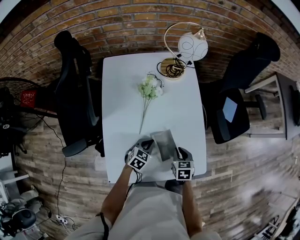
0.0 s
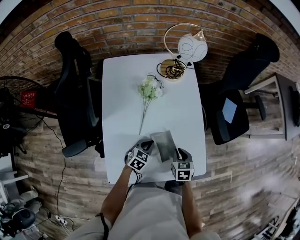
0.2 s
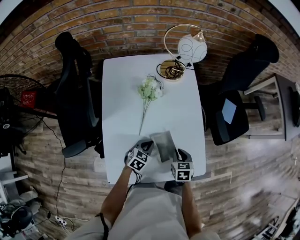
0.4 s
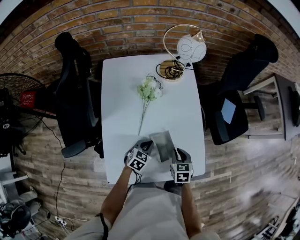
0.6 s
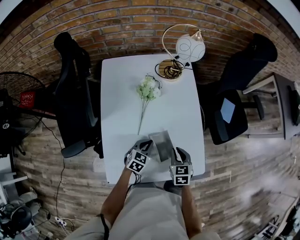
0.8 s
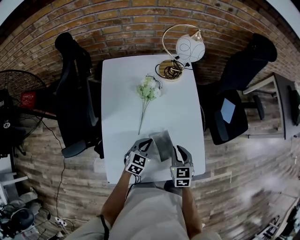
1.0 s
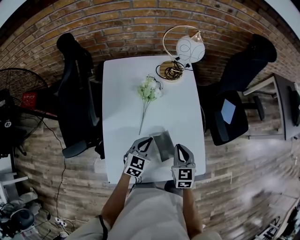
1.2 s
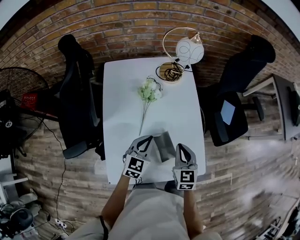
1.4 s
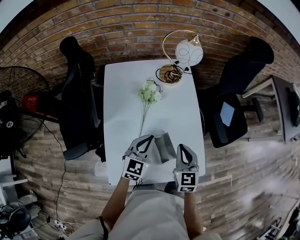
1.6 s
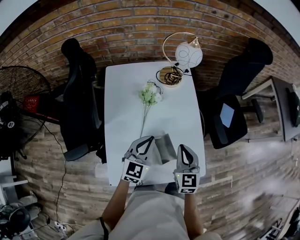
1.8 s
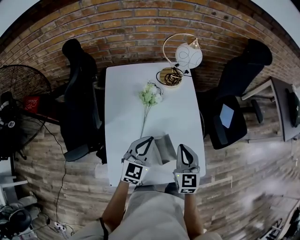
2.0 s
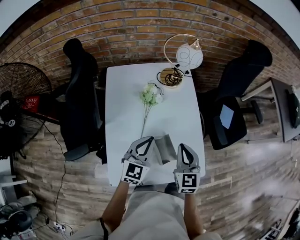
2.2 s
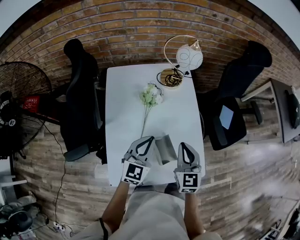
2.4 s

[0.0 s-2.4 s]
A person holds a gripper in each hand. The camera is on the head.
0.0 to 1.2 s: Both grippers travel together upward, approximately 10 cm. The right gripper rotates about 20 degrees.
1.2 to 2.4 s: Both grippers move upward, roughly 10 cm.

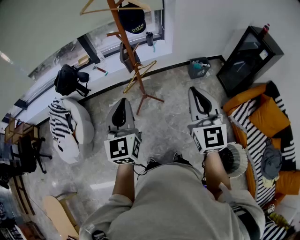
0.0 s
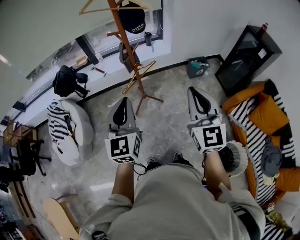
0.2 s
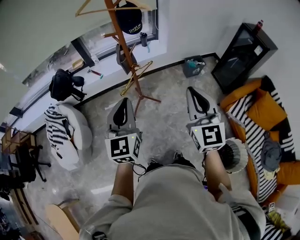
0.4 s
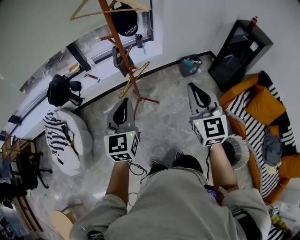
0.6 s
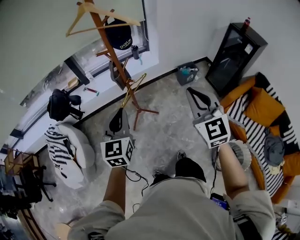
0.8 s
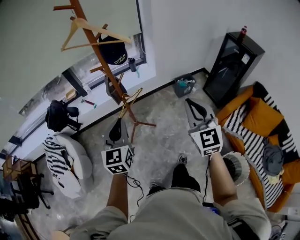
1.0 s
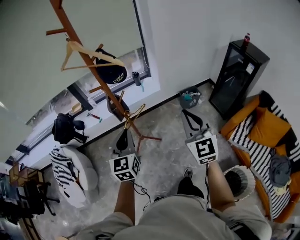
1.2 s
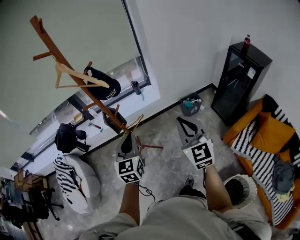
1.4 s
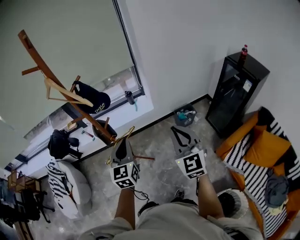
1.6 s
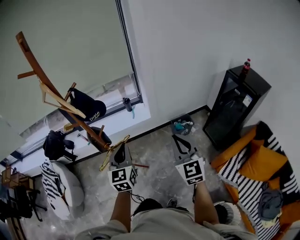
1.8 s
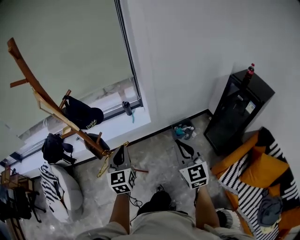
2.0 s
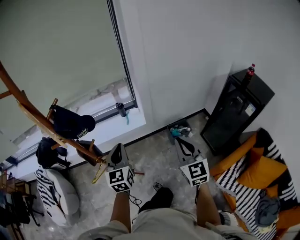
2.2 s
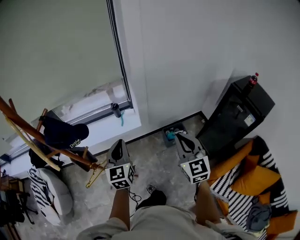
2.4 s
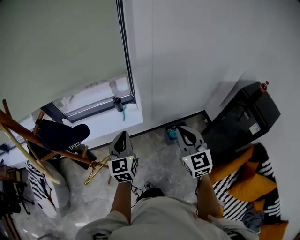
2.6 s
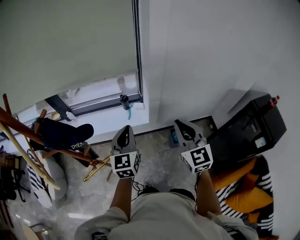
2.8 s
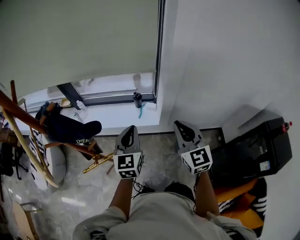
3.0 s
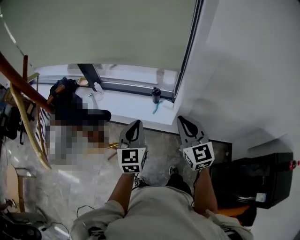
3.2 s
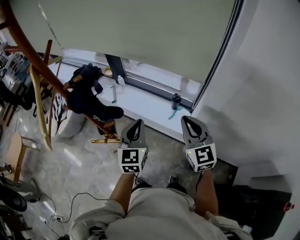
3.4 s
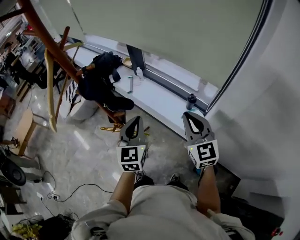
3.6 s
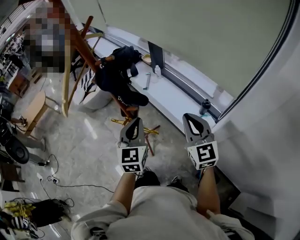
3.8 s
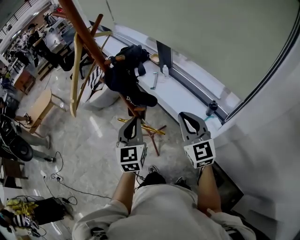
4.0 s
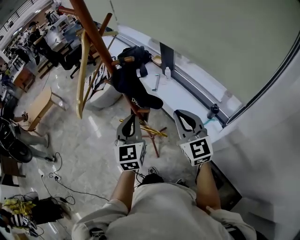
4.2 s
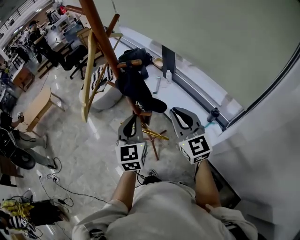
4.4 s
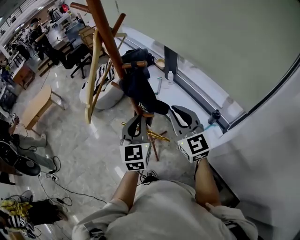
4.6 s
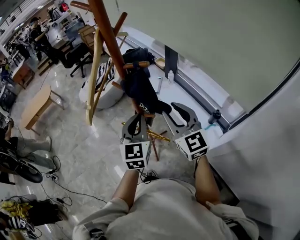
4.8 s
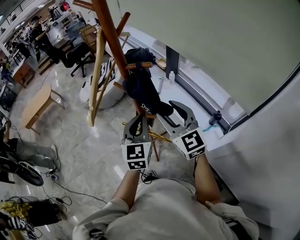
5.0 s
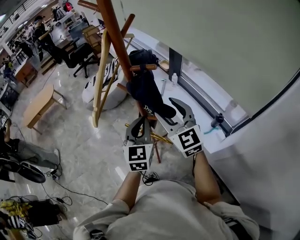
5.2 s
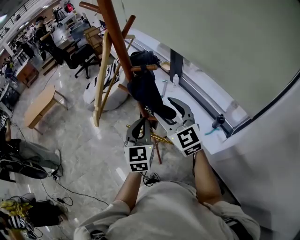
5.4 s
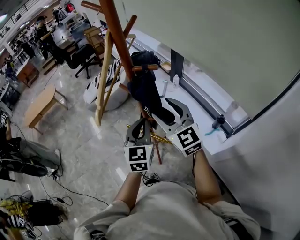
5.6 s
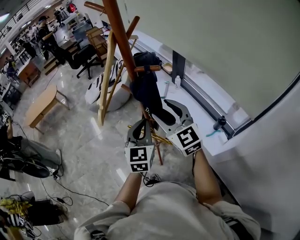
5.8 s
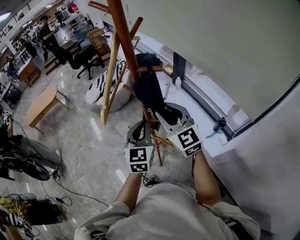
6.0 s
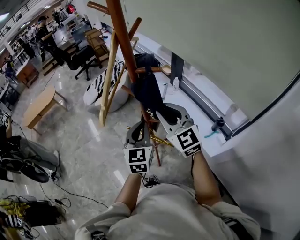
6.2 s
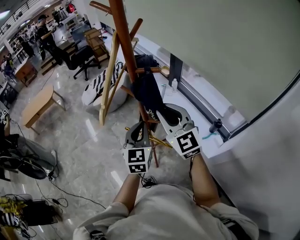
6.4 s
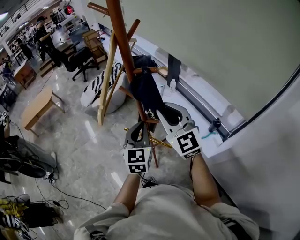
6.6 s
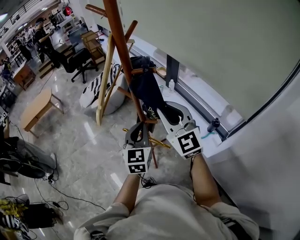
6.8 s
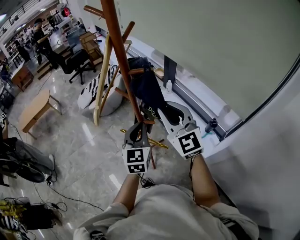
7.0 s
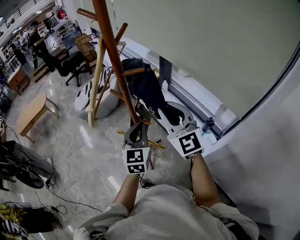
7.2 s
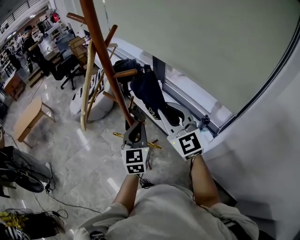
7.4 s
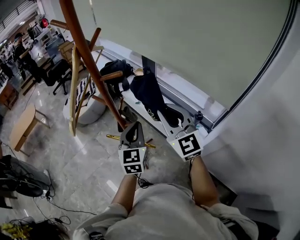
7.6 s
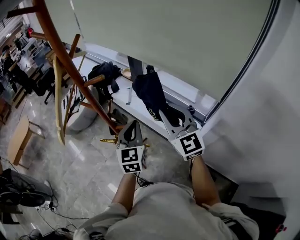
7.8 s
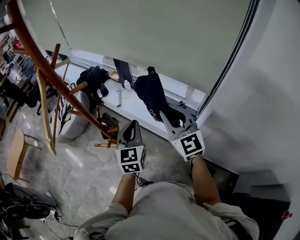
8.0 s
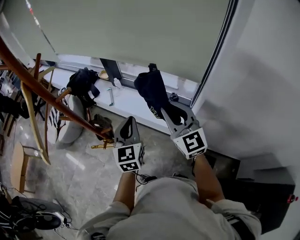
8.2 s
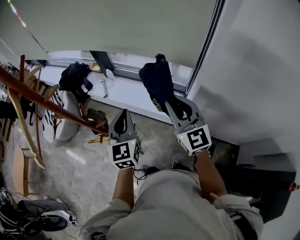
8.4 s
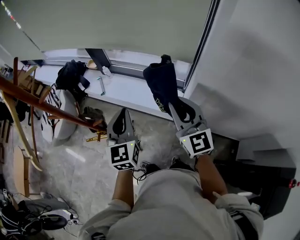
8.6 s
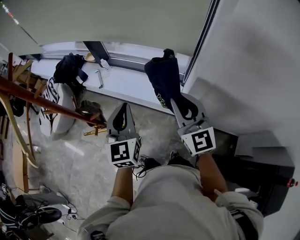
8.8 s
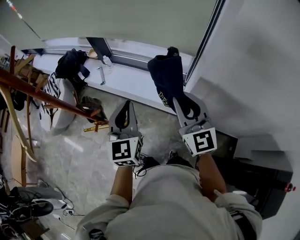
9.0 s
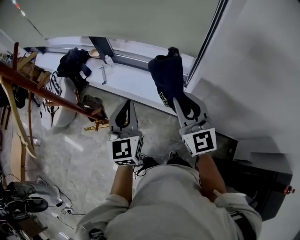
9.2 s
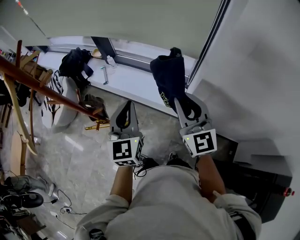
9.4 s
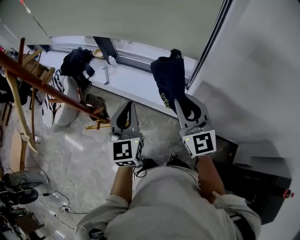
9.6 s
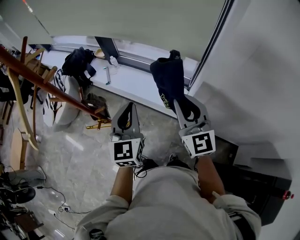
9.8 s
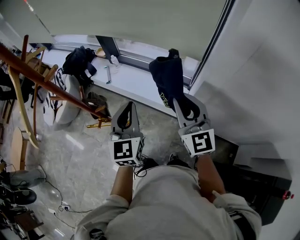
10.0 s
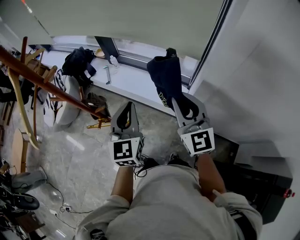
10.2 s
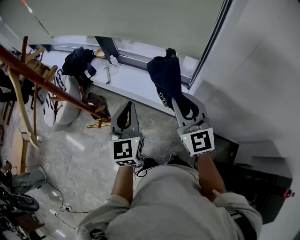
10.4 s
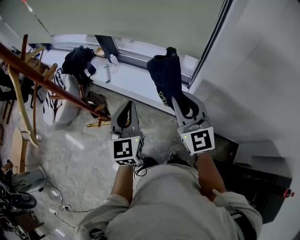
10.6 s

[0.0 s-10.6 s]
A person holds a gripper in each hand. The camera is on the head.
0.0 to 1.6 s: Both grippers move forward and to the right, roughly 30 cm.
1.6 to 3.0 s: Both grippers travel together forward, about 40 cm. The right gripper turns by some 20 degrees.
3.0 to 4.6 s: The right gripper shifts by roughly 30 cm, and rotates some 60 degrees, while the left gripper moves some 20 cm, and swivels roughly 60 degrees.
4.6 to 6.0 s: The right gripper shifts about 10 cm to the left and forward, and opens up.
6.0 to 7.6 s: The two grippers go approximately 10 cm to the right.
7.6 to 9.0 s: The right gripper moves roughly 25 cm, and rotates about 30 degrees; the left gripper shifts by some 15 cm, and changes its angle by some 20 degrees.
9.0 to 10.6 s: The grippers move only a little.

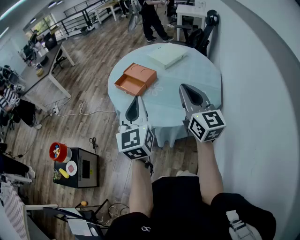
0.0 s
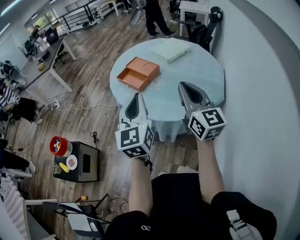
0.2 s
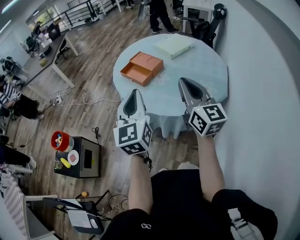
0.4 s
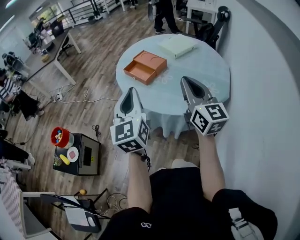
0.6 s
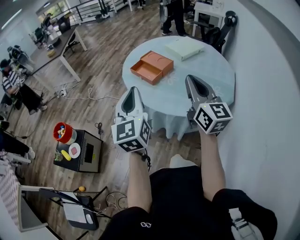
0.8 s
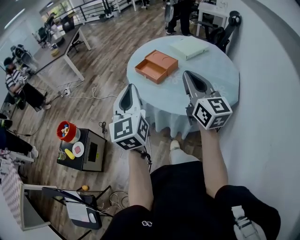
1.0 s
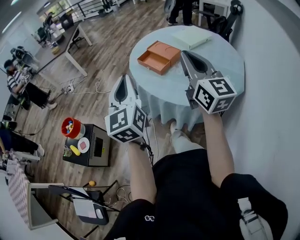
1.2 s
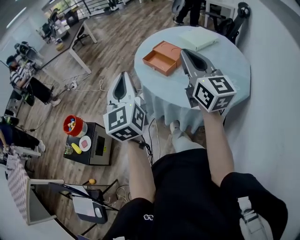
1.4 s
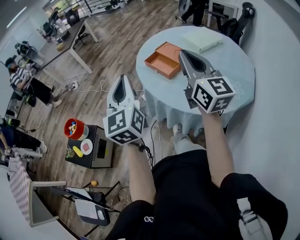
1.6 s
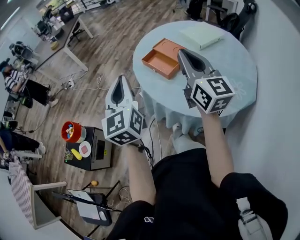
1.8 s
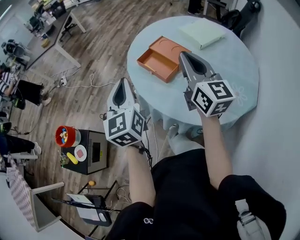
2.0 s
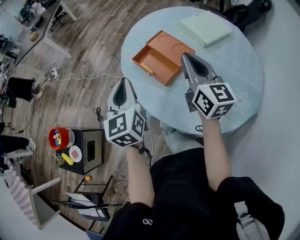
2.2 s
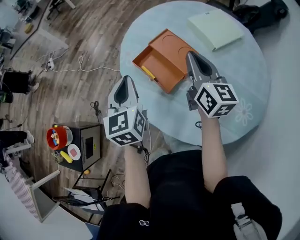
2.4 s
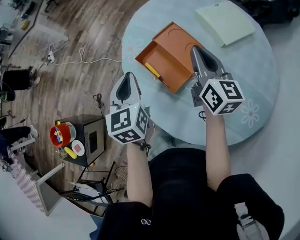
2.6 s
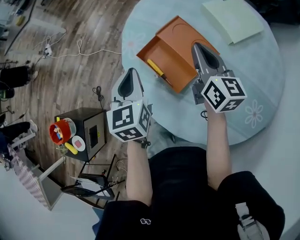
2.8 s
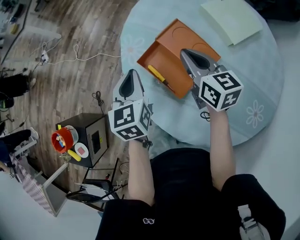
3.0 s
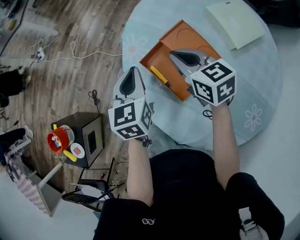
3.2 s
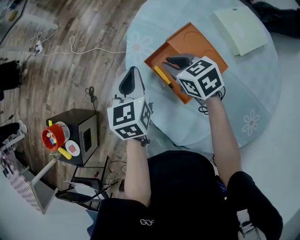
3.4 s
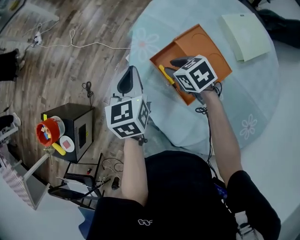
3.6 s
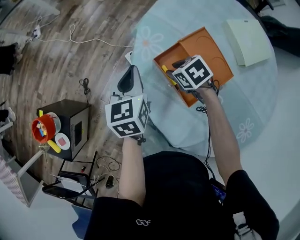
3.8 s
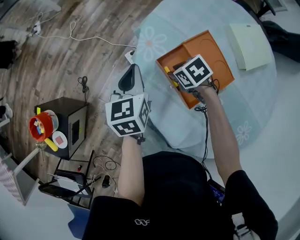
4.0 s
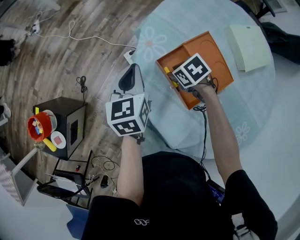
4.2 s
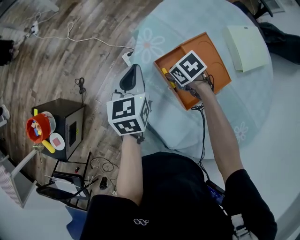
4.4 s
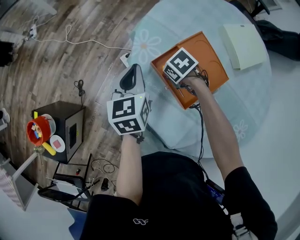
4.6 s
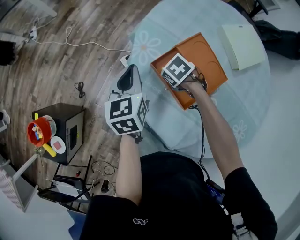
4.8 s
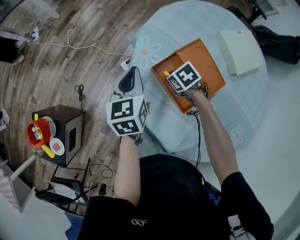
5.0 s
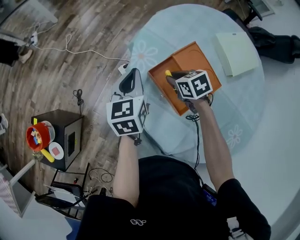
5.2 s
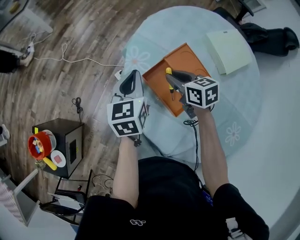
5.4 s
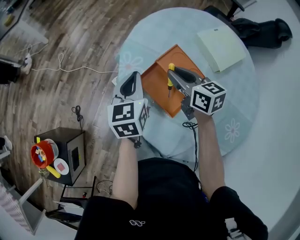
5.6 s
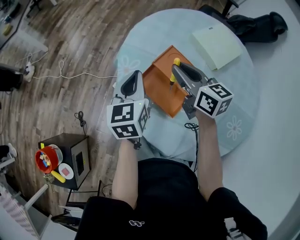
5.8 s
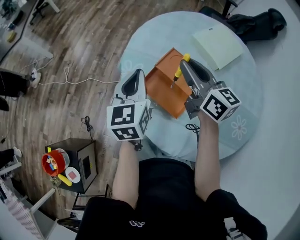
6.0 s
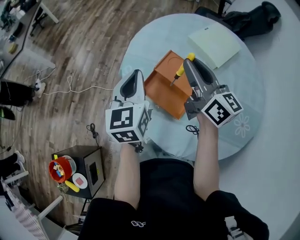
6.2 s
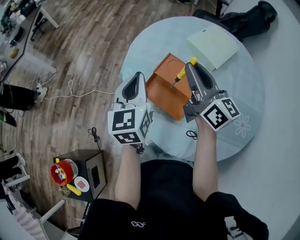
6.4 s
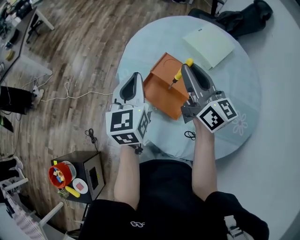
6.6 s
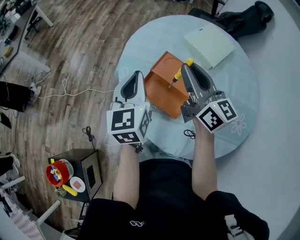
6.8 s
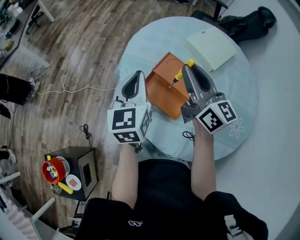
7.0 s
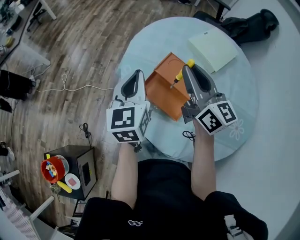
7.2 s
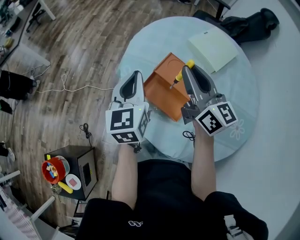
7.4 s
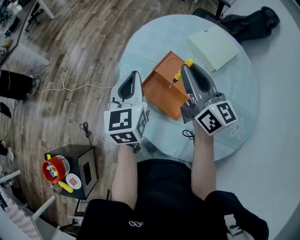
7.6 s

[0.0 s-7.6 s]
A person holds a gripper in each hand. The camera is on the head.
0.0 to 1.6 s: The left gripper moves to the left, some 20 cm. Meanwhile the right gripper goes some 20 cm to the left and forward.
1.6 to 3.0 s: The two grippers travel together, forward, some 40 cm. Both grippers travel together downward, some 30 cm. The right gripper angles its fingers downward, by roughly 30 degrees, while the left gripper tips its fingers downward by roughly 30 degrees.
3.0 to 4.6 s: The right gripper travels downward by about 20 cm, tips its fingers downward by about 50 degrees, and opens up; the left gripper ends up about 10 cm from where it was.
4.6 to 6.0 s: The right gripper shifts some 30 cm upward, and tips its fingers upward by roughly 70 degrees. The left gripper moves upward, approximately 10 cm, and swivels approximately 20 degrees.
6.0 to 7.6 s: There are only small adjustments of the grippers.

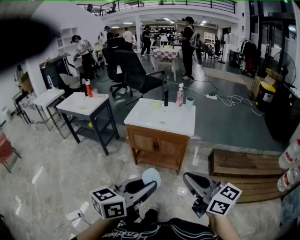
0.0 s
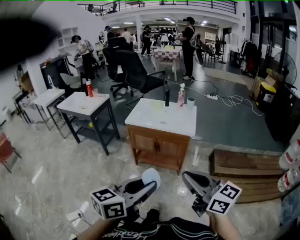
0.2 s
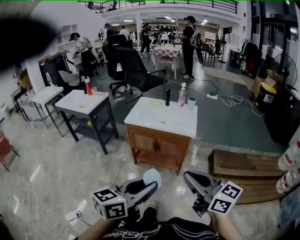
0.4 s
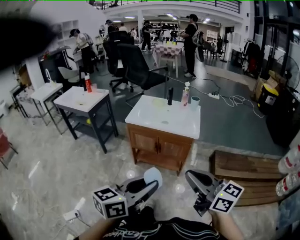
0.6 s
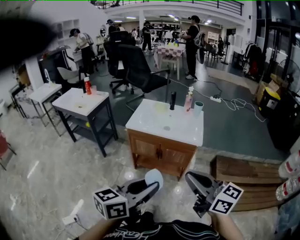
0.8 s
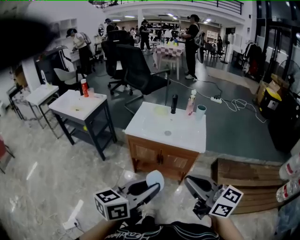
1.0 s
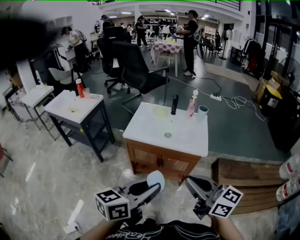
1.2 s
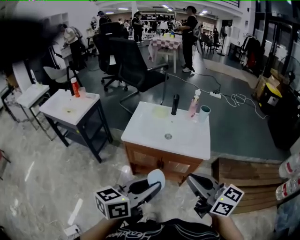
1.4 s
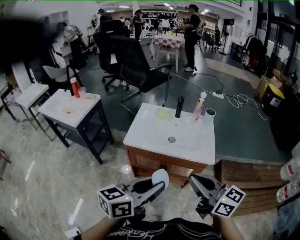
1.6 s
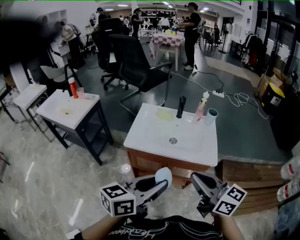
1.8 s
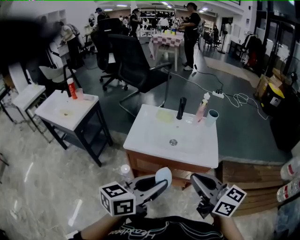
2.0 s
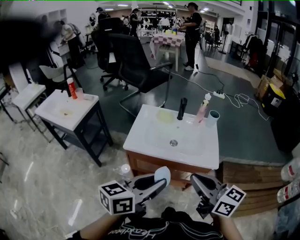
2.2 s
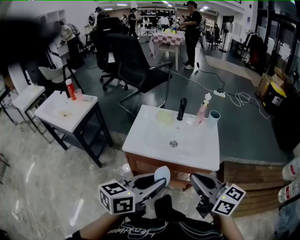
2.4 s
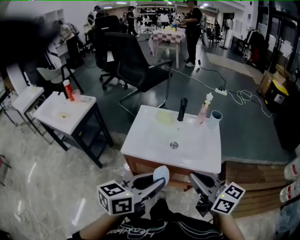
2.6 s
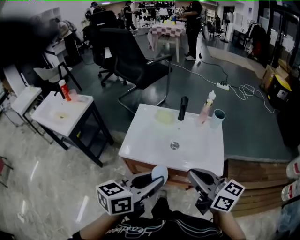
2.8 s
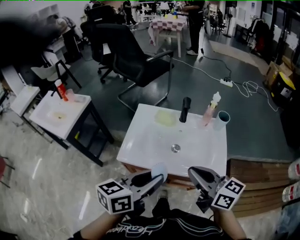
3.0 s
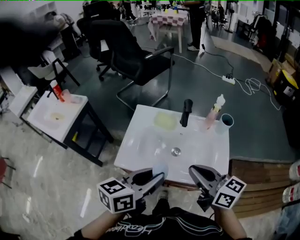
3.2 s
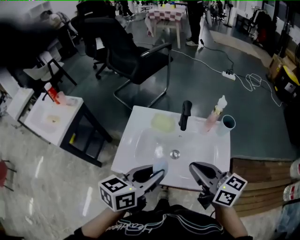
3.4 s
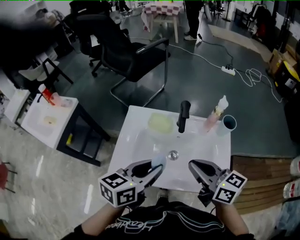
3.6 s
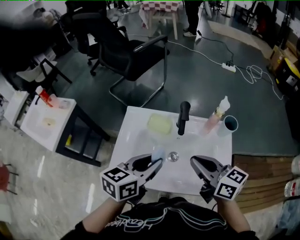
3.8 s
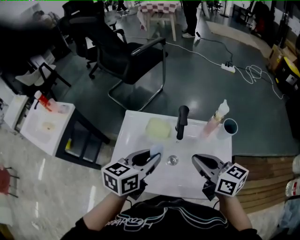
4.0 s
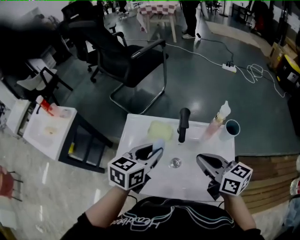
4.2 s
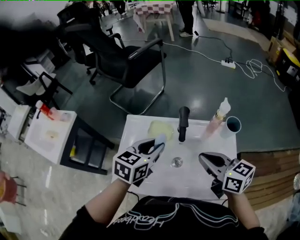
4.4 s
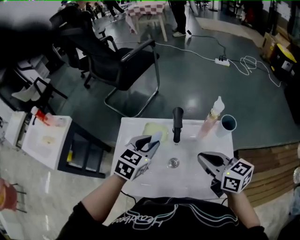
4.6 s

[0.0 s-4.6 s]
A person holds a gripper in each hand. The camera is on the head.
0.0 to 1.6 s: The two grippers travel together, forward, approximately 40 cm.
1.6 to 3.0 s: The grippers both shift forward by approximately 25 cm.
3.0 to 4.6 s: The two grippers go some 30 cm forward. The left gripper turns by about 40 degrees.
